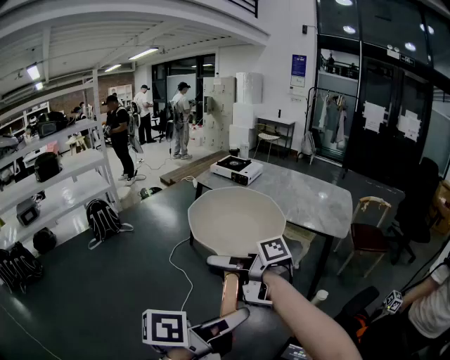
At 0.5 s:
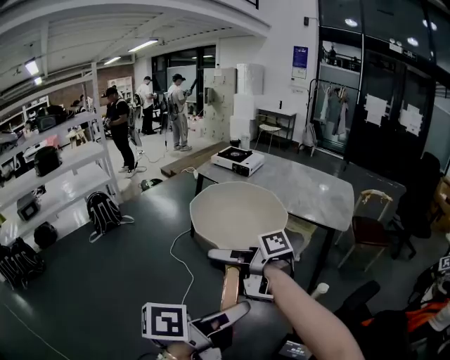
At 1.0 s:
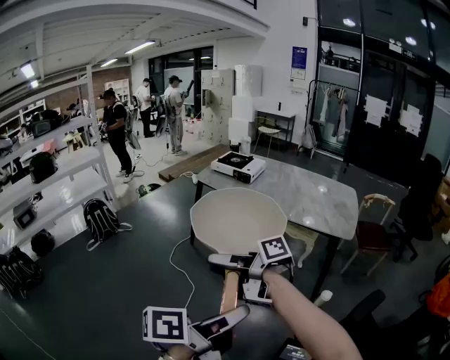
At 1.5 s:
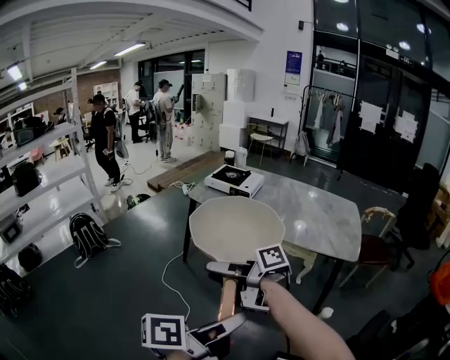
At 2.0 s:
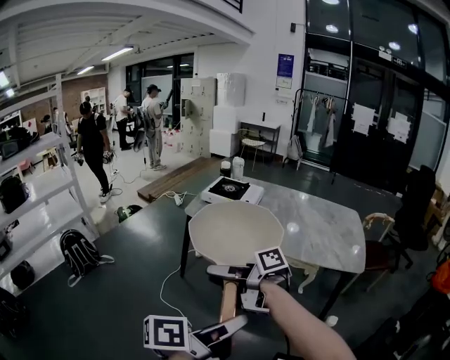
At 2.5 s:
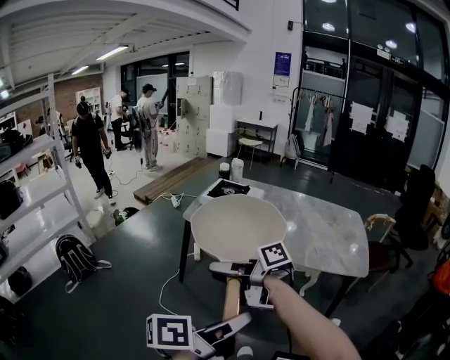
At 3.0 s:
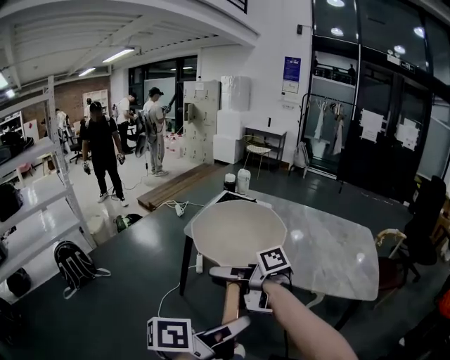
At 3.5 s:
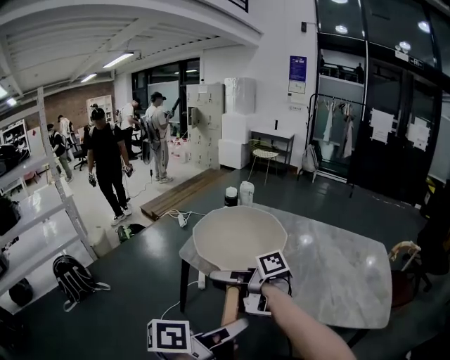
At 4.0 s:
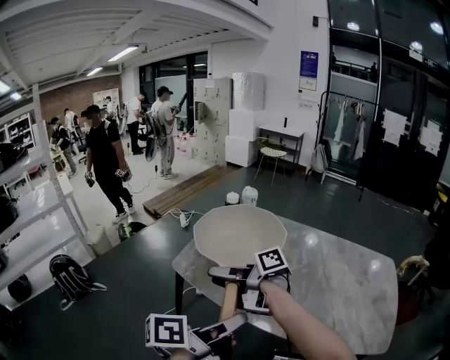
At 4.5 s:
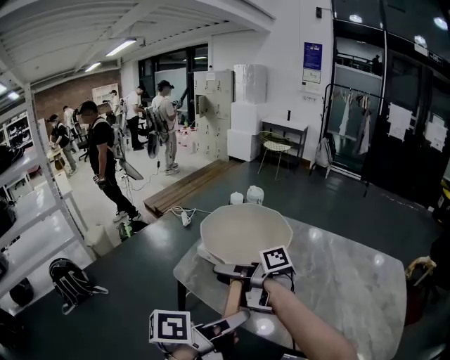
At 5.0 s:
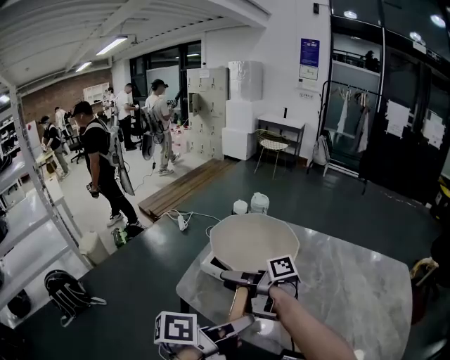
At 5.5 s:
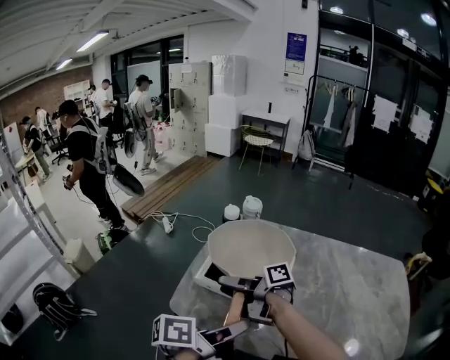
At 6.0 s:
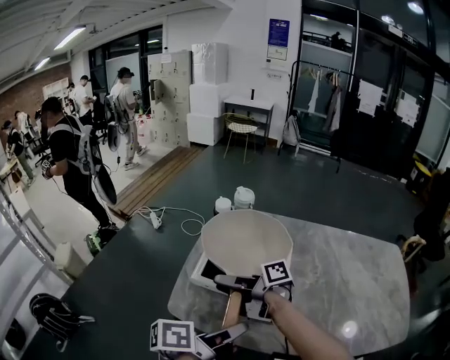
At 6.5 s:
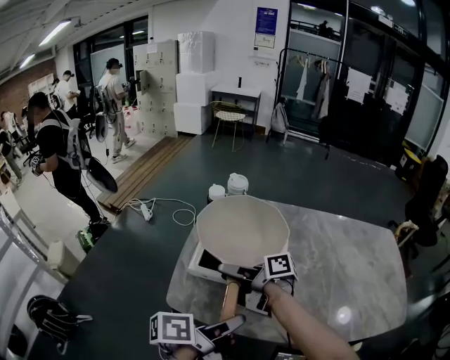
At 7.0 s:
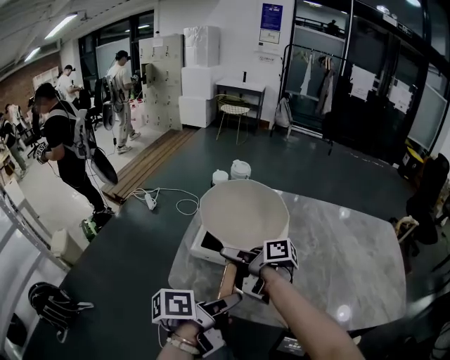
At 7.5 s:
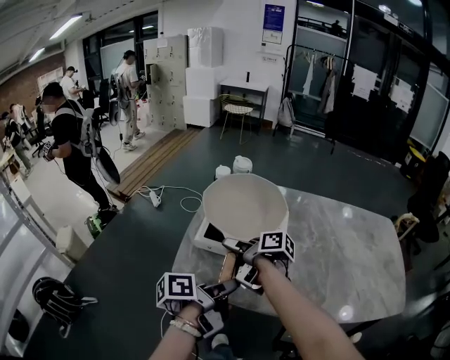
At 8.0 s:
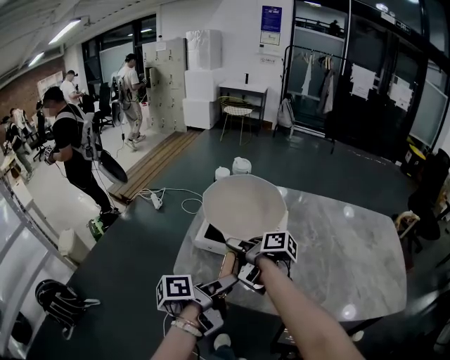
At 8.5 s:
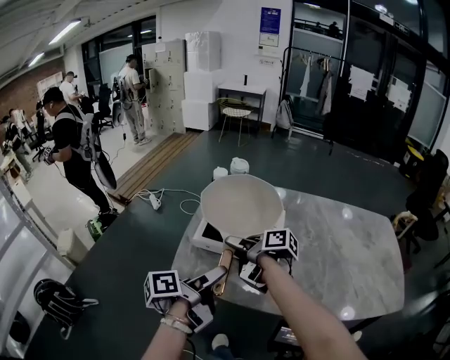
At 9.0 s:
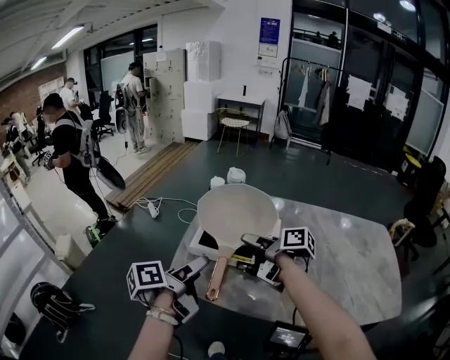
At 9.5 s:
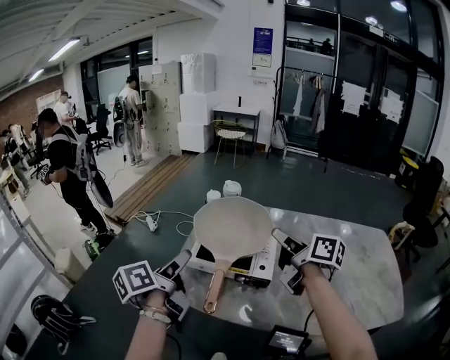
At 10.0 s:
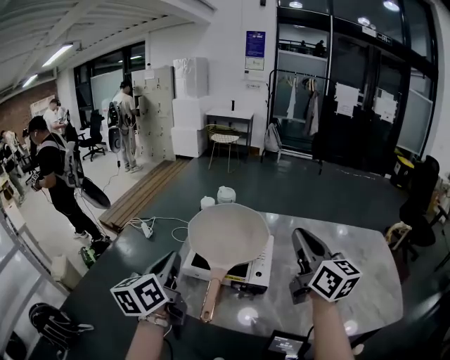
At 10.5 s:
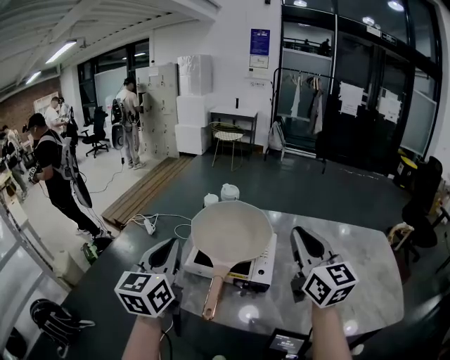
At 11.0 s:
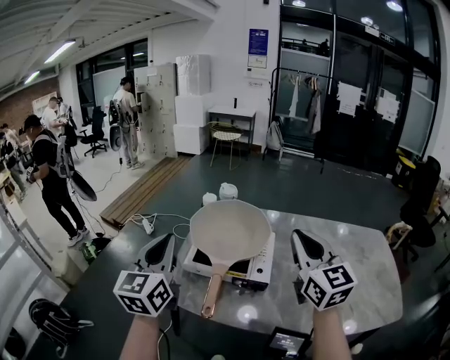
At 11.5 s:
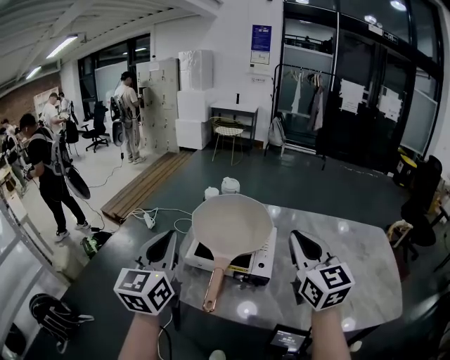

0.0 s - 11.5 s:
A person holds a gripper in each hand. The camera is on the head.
0.0 s - 2.0 s: The right gripper ends up some 30 cm from where it was. Meanwhile the left gripper changes place by approximately 30 cm.
2.0 s - 4.0 s: The right gripper ends up roughly 35 cm from where it was. Meanwhile the left gripper ends up approximately 35 cm from where it was.
4.0 s - 6.0 s: The two grippers go some 20 cm forward and downward.
6.0 s - 7.5 s: The right gripper turns by roughly 30 degrees. The left gripper shifts about 5 cm downward.
7.5 s - 9.5 s: The left gripper is displaced to the left, upward and forward by about 15 cm, changes its angle by approximately 30 degrees, and opens its fingers. Meanwhile the right gripper moves upward and to the right, roughly 20 cm, rotates some 40 degrees, and closes.
9.5 s - 11.5 s: The right gripper moves backward, roughly 5 cm, rotates around the line of its fingers by about 60 degrees, counterclockwise from behind, and closes its fingers. Meanwhile the left gripper goes some 10 cm upward, rotates around the line of its fingers by roughly 50 degrees, clockwise from behind, and closes up.

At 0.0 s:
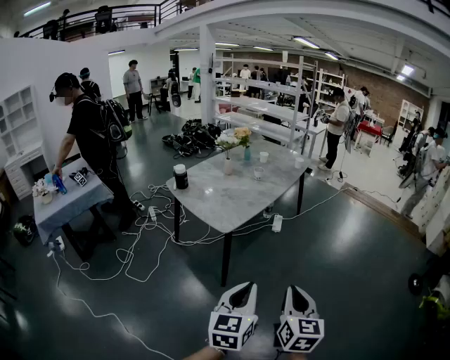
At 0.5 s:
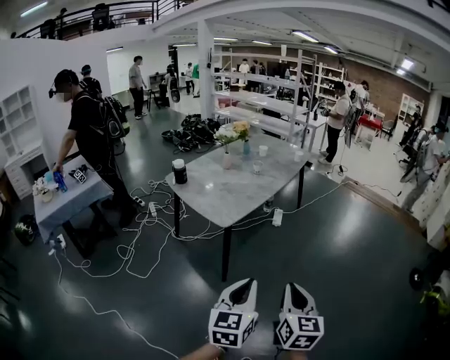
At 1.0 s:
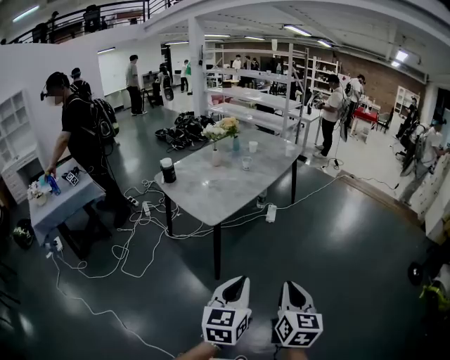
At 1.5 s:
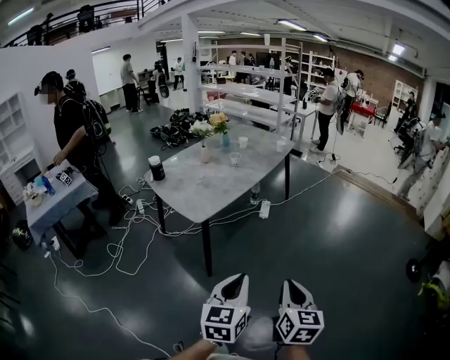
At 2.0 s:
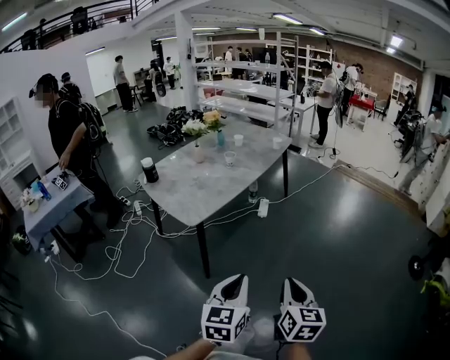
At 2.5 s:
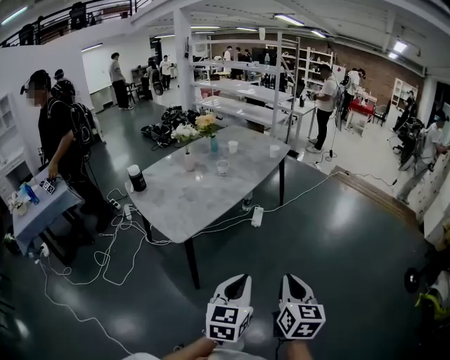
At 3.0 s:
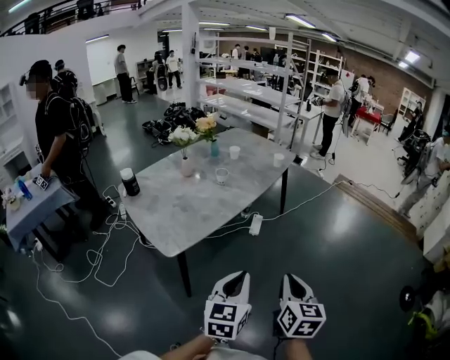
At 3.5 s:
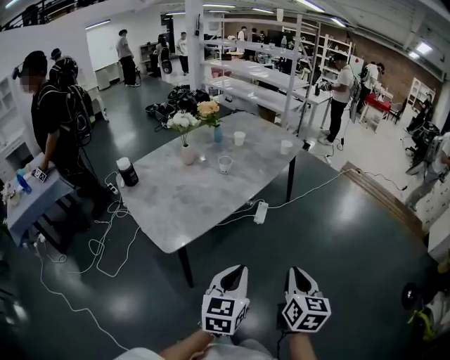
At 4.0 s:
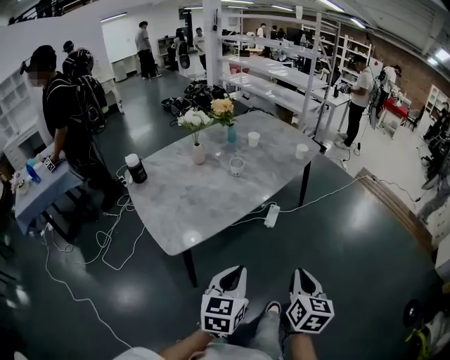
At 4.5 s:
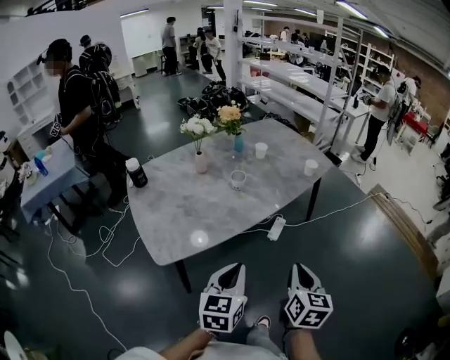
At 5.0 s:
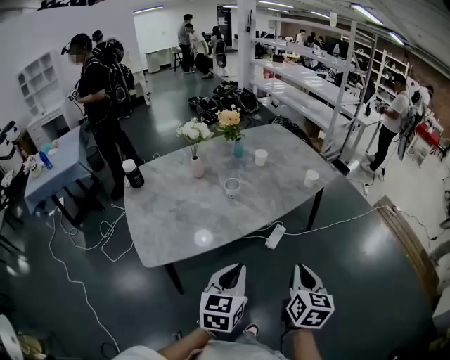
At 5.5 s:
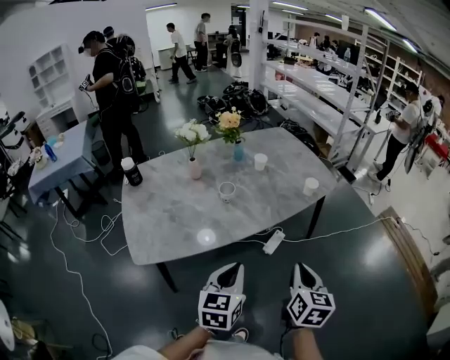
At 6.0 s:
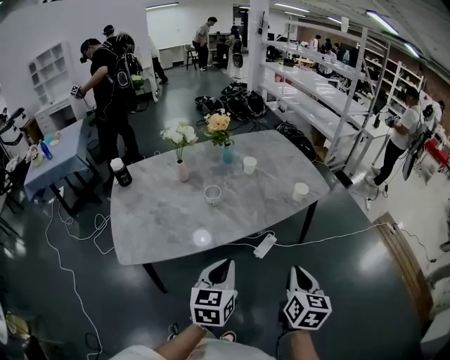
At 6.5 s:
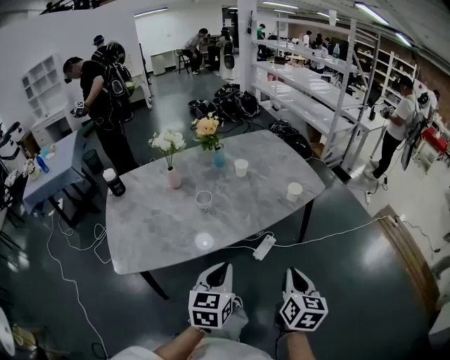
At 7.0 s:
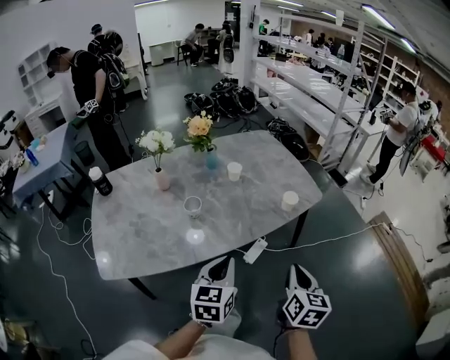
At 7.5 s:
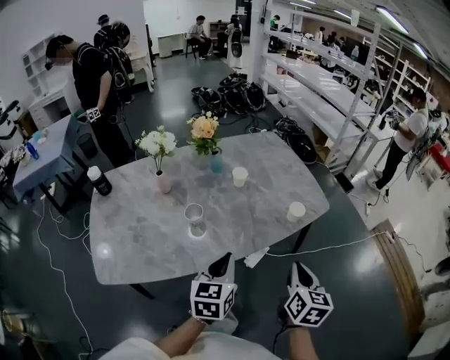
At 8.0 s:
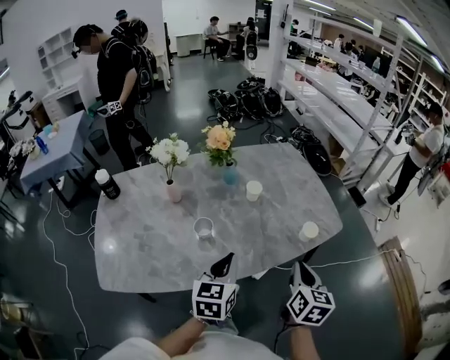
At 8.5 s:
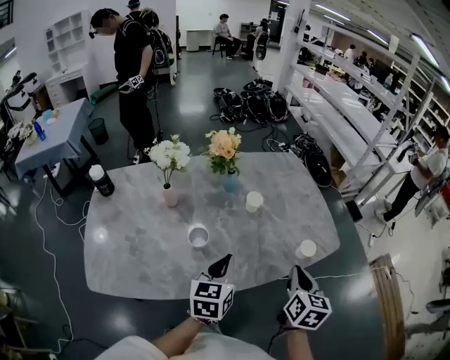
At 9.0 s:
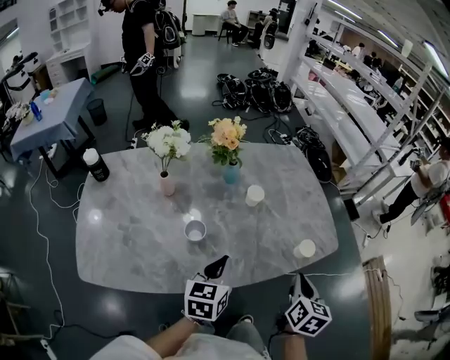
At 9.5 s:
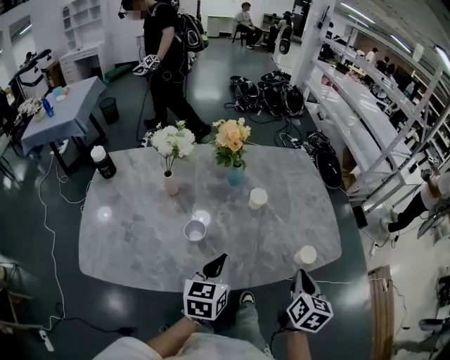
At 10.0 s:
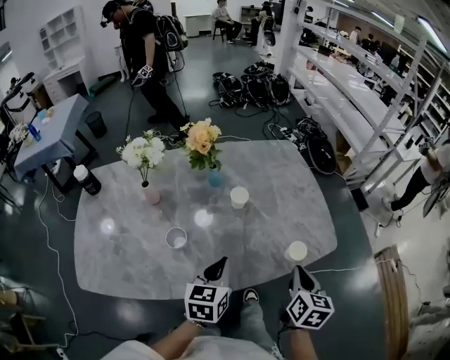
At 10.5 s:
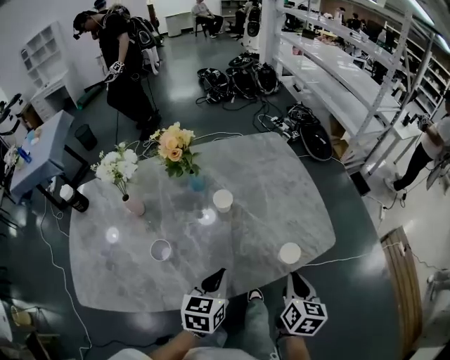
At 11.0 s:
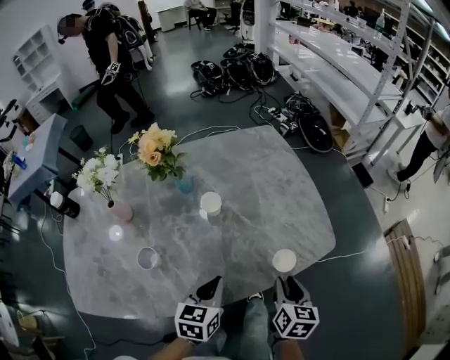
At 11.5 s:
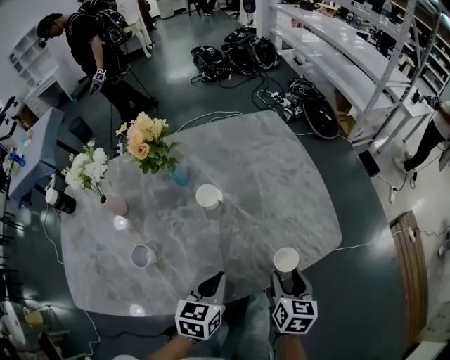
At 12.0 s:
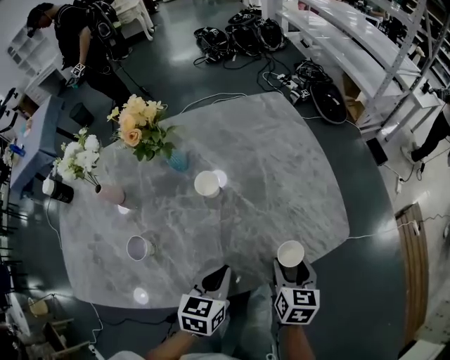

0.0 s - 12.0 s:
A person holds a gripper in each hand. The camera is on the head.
0.0 s - 2.0 s: The grippers both shift to the right and forward by roughly 15 cm.
2.0 s - 4.0 s: Both grippers travel together forward, roughly 35 cm.
4.0 s - 6.0 s: Both grippers move forward and to the right, about 30 cm. The left gripper swivels about 20 degrees.
6.0 s - 8.0 s: The grippers both shift forward by approximately 25 cm.
8.0 s - 10.0 s: The left gripper goes some 10 cm forward. Meanwhile the right gripper moves forward and to the right, approximately 15 cm.
10.0 s - 12.0 s: The left gripper goes approximately 15 cm downward, to the right and forward. Meanwhile the right gripper travels downward and forward by approximately 15 cm, and opens up.

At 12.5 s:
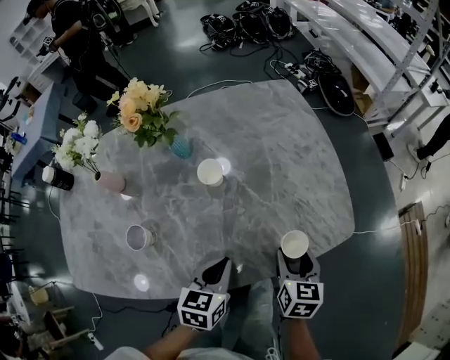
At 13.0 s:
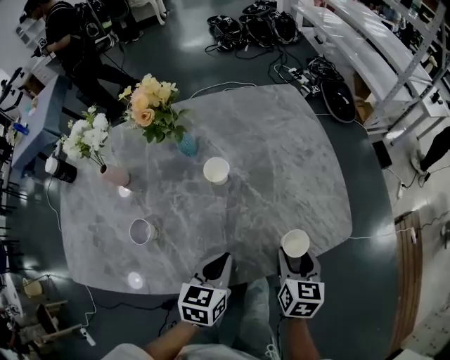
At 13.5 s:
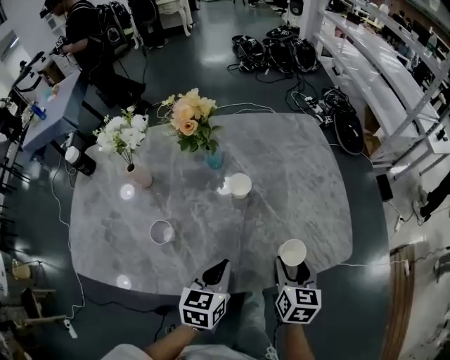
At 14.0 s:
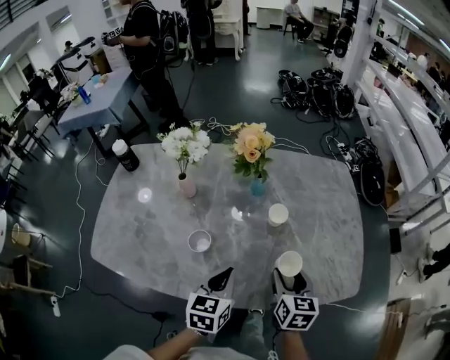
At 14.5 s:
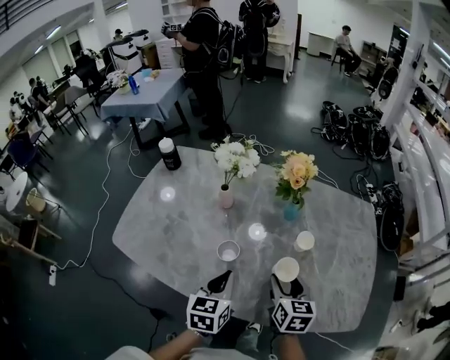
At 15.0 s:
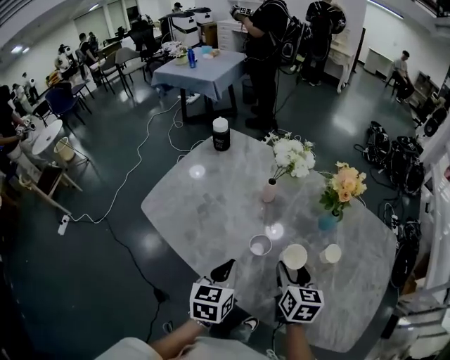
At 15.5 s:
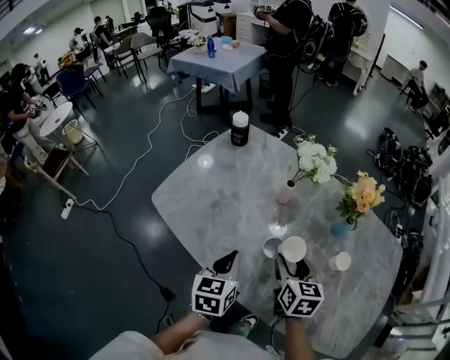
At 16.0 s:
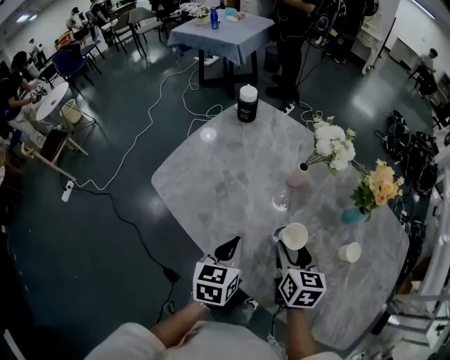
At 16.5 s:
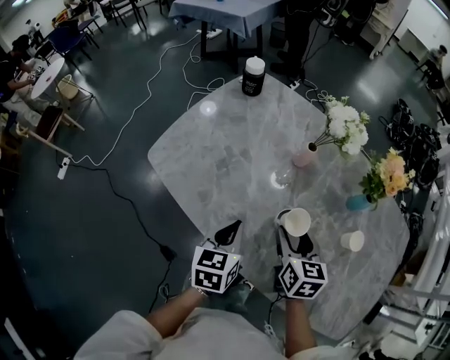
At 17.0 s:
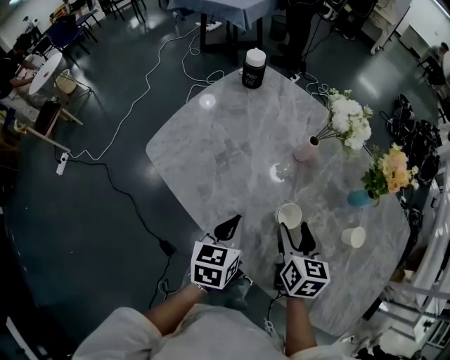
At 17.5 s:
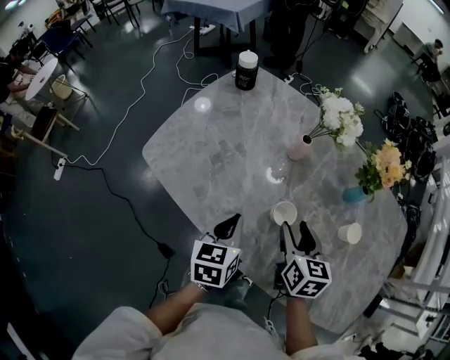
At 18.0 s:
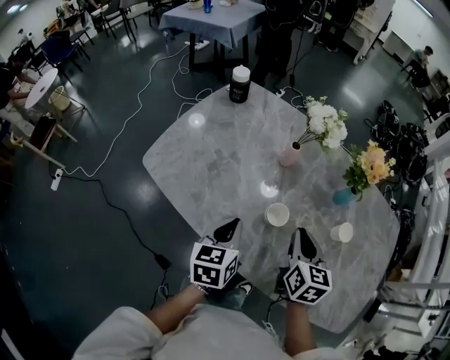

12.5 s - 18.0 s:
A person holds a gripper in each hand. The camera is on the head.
12.5 s - 14.5 s: The left gripper changes place by some 25 cm, and swivels about 40 degrees. The right gripper ends up about 30 cm from where it was, and rotates some 30 degrees.
14.5 s - 16.0 s: The right gripper goes some 20 cm to the left and forward, and changes its angle by approximately 20 degrees. The left gripper travels to the left by some 15 cm, and rotates some 20 degrees.
16.0 s - 18.0 s: The right gripper shifts by about 5 cm, and closes its fingers.
